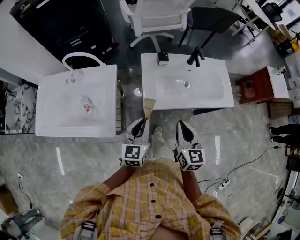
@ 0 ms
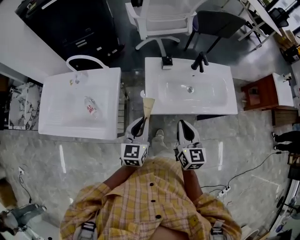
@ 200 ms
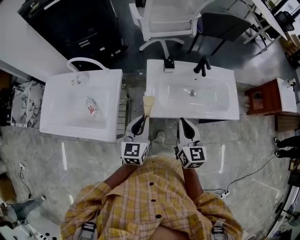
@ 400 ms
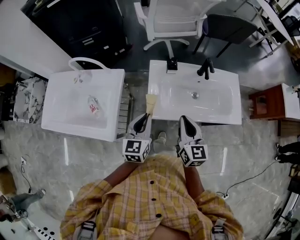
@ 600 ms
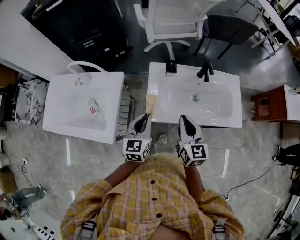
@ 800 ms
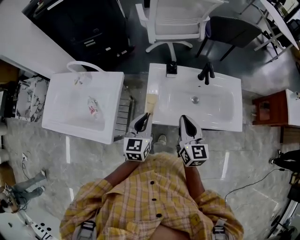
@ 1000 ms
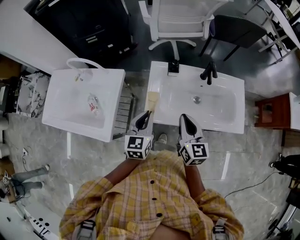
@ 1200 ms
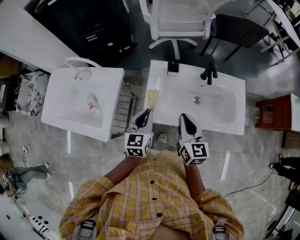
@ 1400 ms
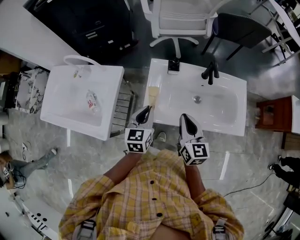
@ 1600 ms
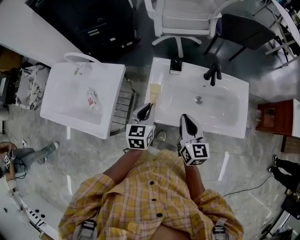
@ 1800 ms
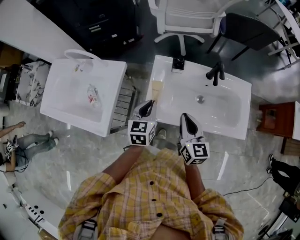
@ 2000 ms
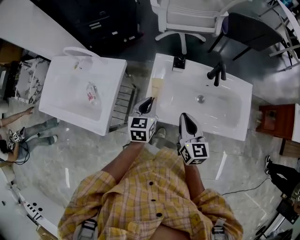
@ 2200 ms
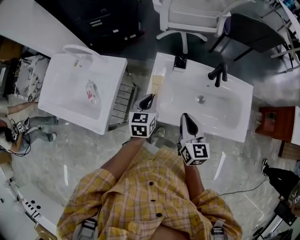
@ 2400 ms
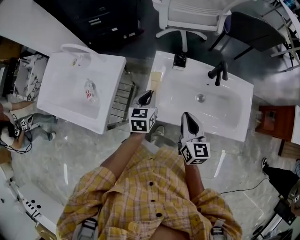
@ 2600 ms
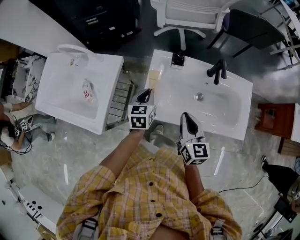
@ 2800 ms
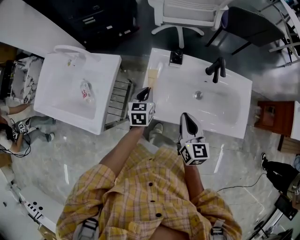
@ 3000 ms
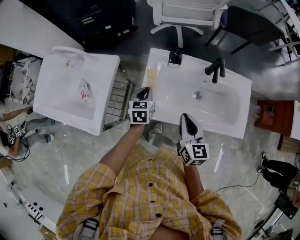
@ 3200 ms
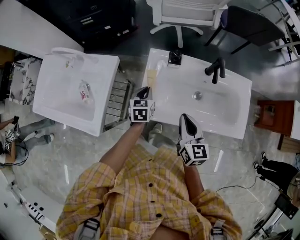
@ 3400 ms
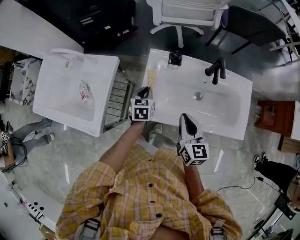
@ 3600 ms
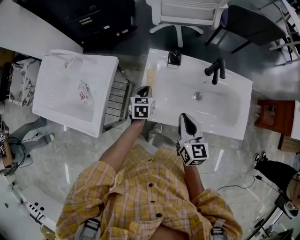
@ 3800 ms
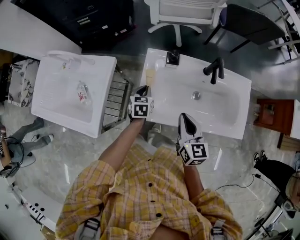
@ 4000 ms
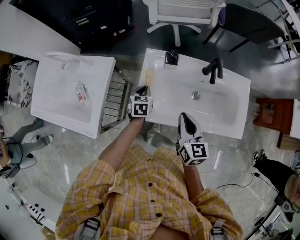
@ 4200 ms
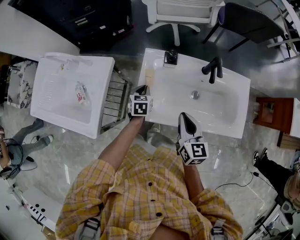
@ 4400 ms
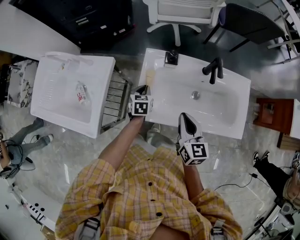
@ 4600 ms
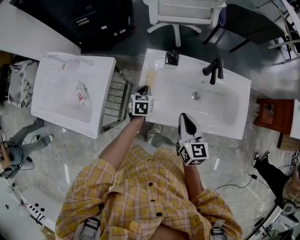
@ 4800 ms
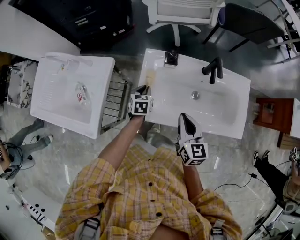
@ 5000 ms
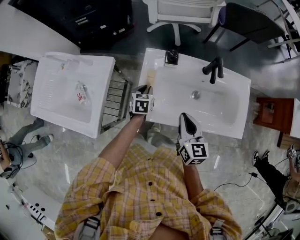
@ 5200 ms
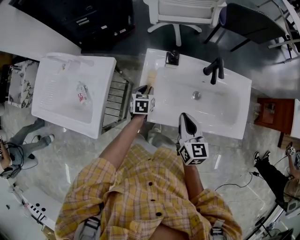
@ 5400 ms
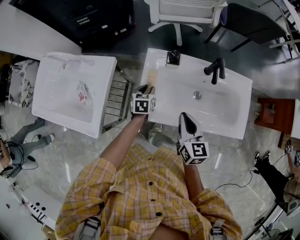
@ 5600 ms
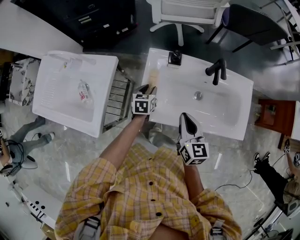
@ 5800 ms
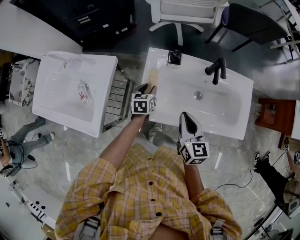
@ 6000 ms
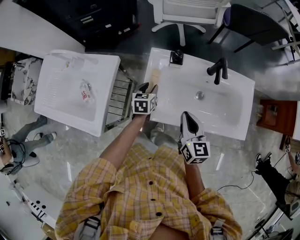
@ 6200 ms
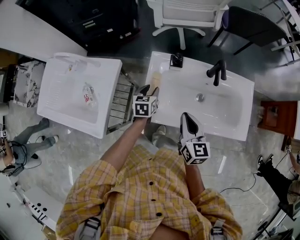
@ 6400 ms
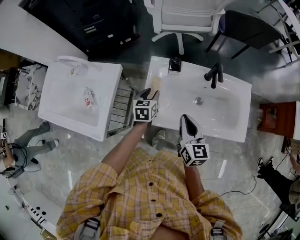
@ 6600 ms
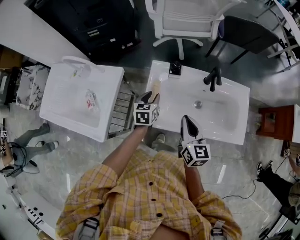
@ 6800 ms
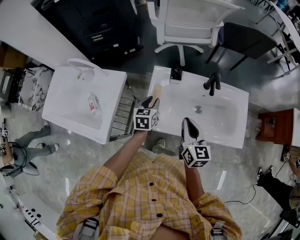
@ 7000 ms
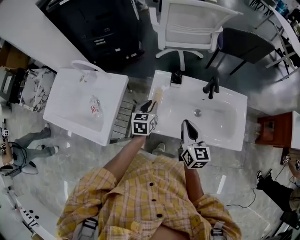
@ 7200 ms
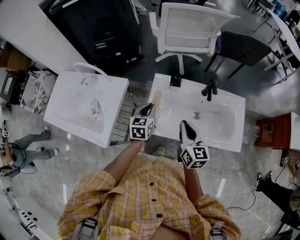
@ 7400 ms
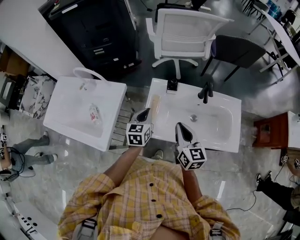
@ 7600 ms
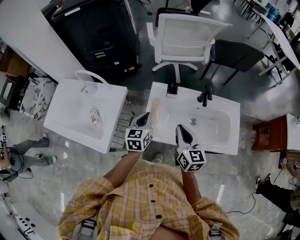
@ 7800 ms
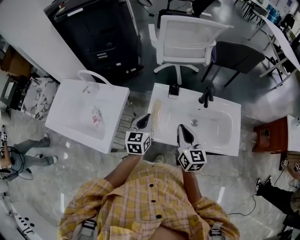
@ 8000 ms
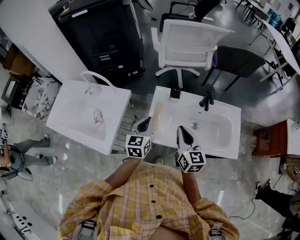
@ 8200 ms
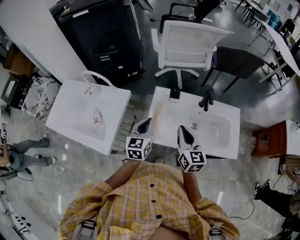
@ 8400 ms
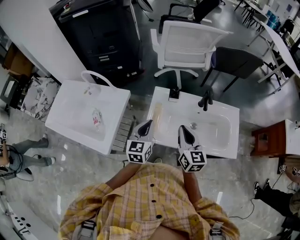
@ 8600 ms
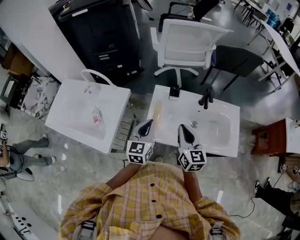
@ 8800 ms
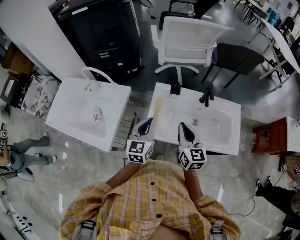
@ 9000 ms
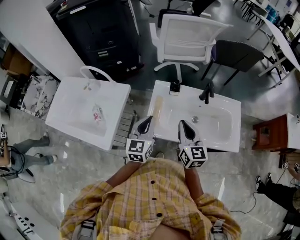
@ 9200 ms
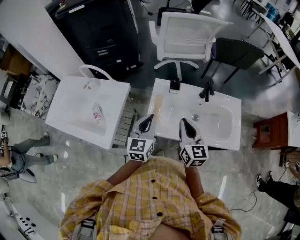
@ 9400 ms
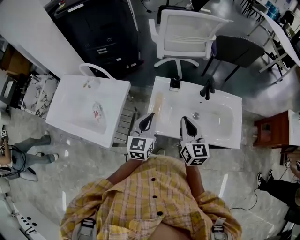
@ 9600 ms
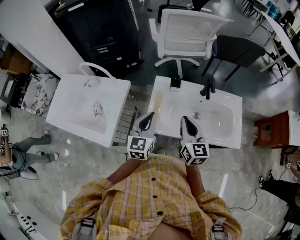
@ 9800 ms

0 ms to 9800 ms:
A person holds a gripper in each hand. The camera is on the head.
0 ms to 1400 ms: The right gripper is displaced forward by some 15 cm. The left gripper is displaced forward and to the right by about 10 cm.
1400 ms to 2800 ms: The left gripper shifts some 10 cm downward and forward.
2800 ms to 4200 ms: The left gripper travels downward by roughly 10 cm.
4200 ms to 5600 ms: The left gripper opens its fingers.
5600 ms to 7000 ms: The left gripper goes roughly 10 cm upward.
7000 ms to 8400 ms: The left gripper heads upward and backward, covering roughly 15 cm, and closes its fingers; the right gripper goes approximately 5 cm upward.
8400 ms to 9800 ms: The grippers make only small movements.
